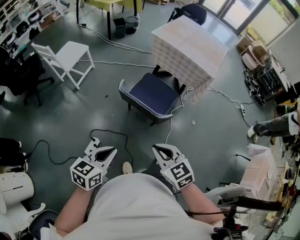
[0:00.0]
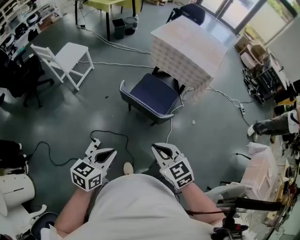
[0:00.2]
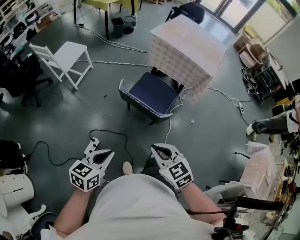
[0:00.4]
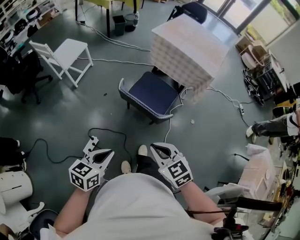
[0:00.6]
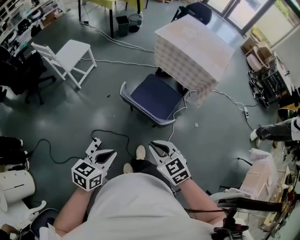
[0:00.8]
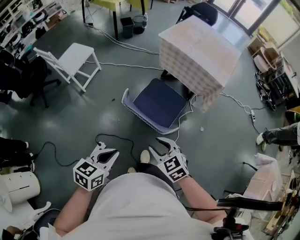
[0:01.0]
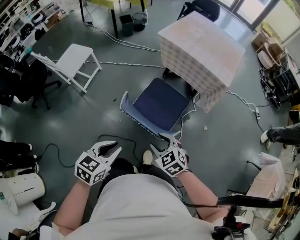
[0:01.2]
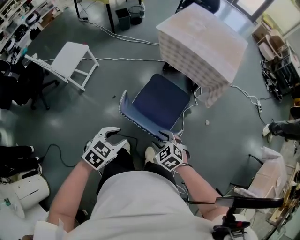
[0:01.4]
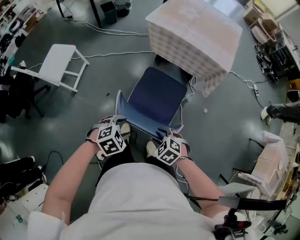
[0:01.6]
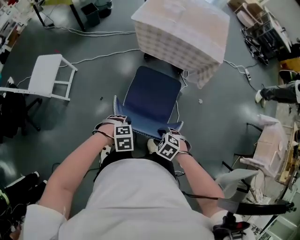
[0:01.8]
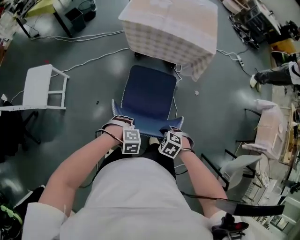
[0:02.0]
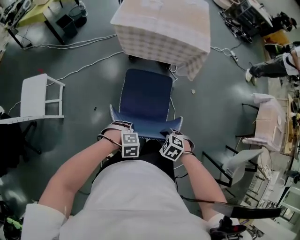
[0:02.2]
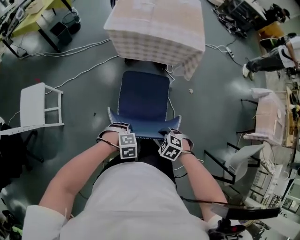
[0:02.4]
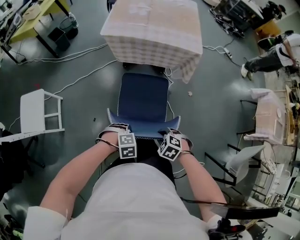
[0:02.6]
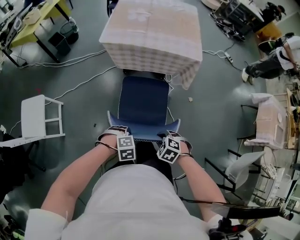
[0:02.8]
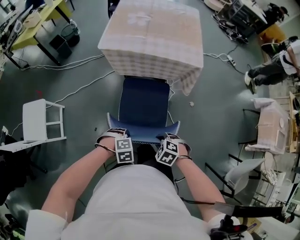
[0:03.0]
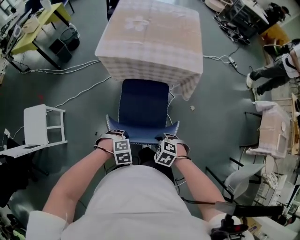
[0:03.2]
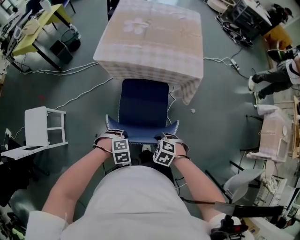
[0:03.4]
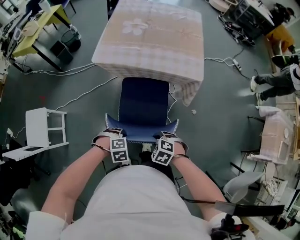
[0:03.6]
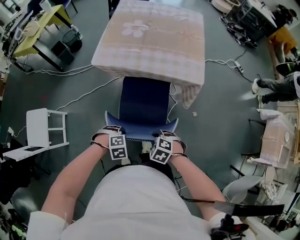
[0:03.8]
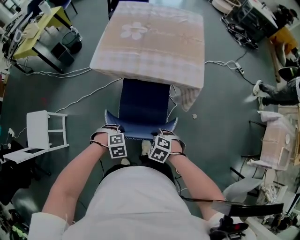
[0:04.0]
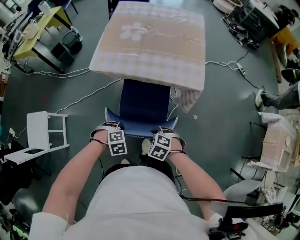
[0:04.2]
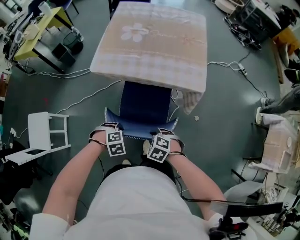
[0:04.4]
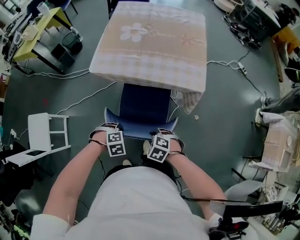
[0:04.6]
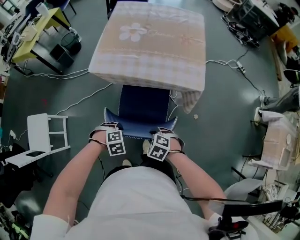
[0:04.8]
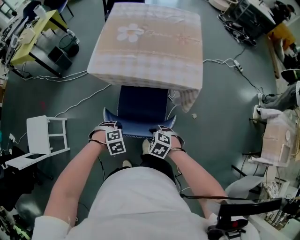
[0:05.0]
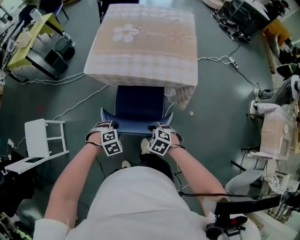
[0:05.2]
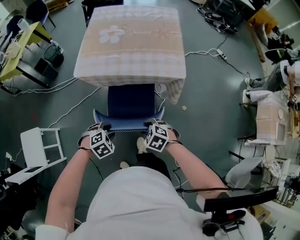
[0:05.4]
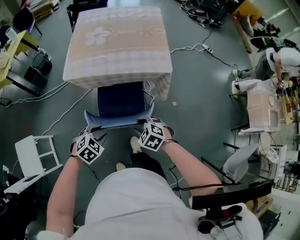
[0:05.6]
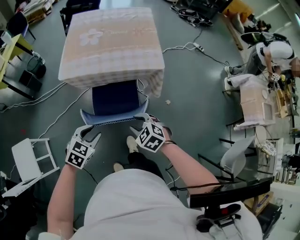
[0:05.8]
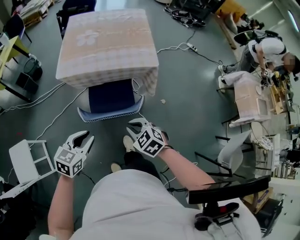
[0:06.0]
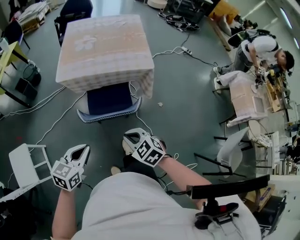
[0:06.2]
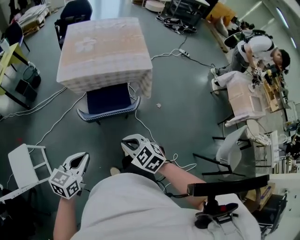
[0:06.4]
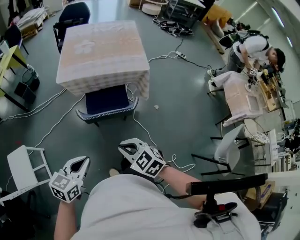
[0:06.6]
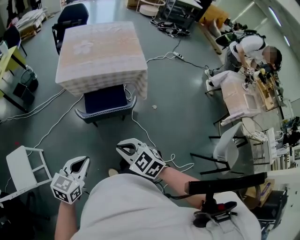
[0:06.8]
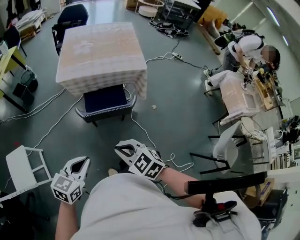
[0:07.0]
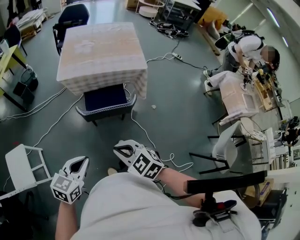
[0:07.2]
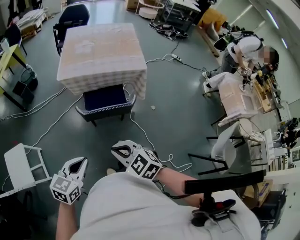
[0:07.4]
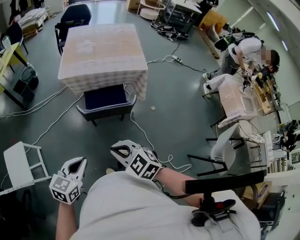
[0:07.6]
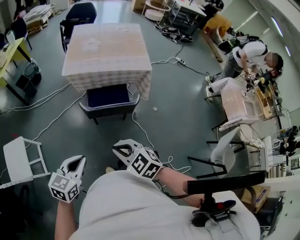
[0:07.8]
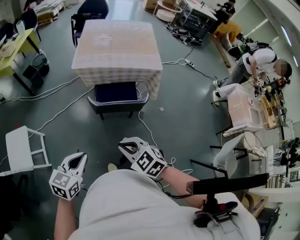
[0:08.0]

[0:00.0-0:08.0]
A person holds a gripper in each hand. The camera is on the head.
0:00.0 to 0:01.6: The grippers both shift forward and downward by about 30 cm. The right gripper angles its fingers downward, by approximately 30 degrees, and opens its fingers. The left gripper tips its fingers downward by some 40 degrees, and opens its fingers.
0:01.6 to 0:03.2: The left gripper moves approximately 20 cm, swivels some 40 degrees, and closes; the right gripper shifts by about 15 cm, and closes its fingers.
0:03.2 to 0:04.8: The right gripper ends up approximately 15 cm from where it was, while the left gripper changes place by approximately 15 cm.
0:04.8 to 0:06.4: The two grippers go about 20 cm upward. The right gripper rotates roughly 40 degrees. The left gripper tips its fingers upward by roughly 50 degrees.
0:06.4 to 0:08.0: Both grippers move backward and to the left, roughly 10 cm.

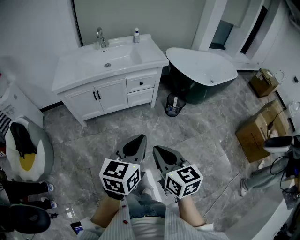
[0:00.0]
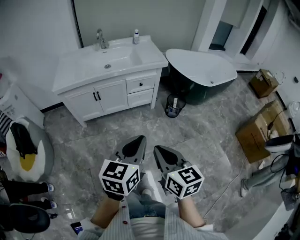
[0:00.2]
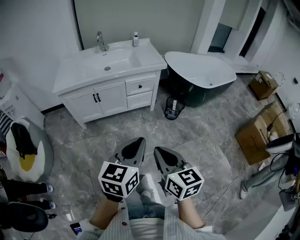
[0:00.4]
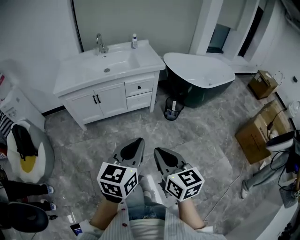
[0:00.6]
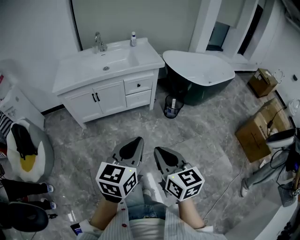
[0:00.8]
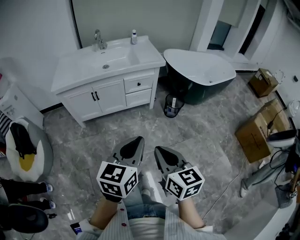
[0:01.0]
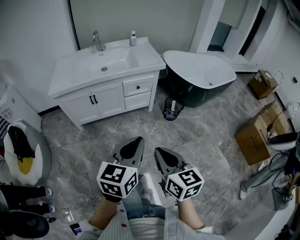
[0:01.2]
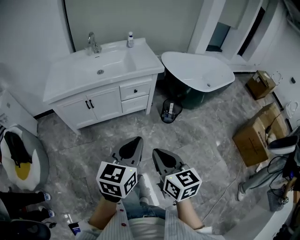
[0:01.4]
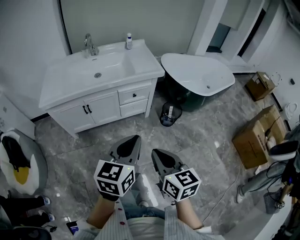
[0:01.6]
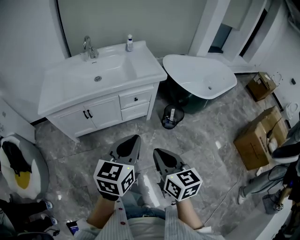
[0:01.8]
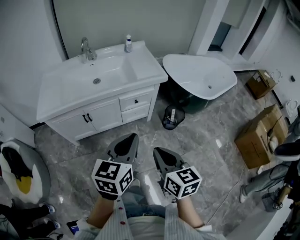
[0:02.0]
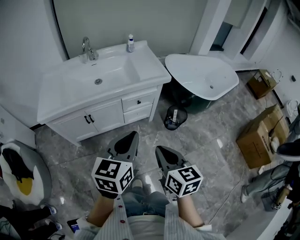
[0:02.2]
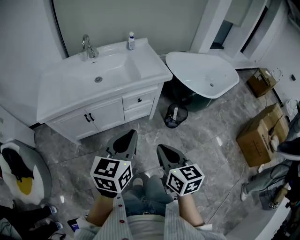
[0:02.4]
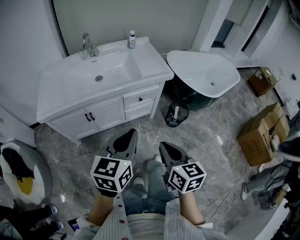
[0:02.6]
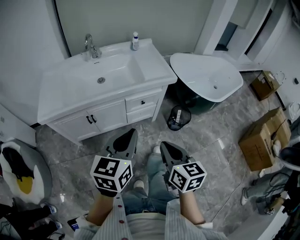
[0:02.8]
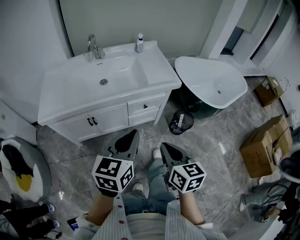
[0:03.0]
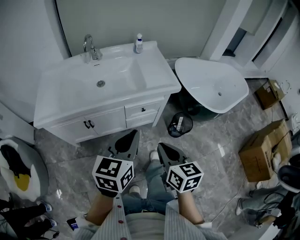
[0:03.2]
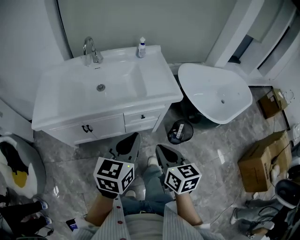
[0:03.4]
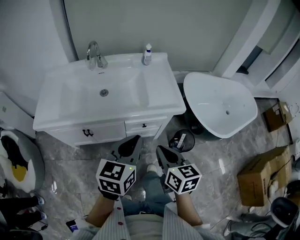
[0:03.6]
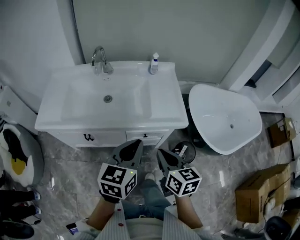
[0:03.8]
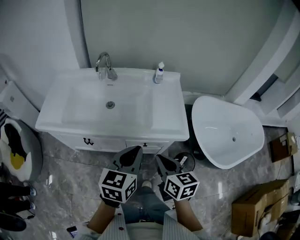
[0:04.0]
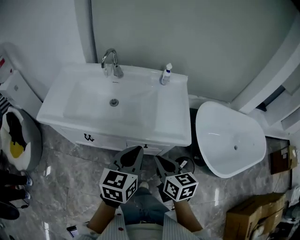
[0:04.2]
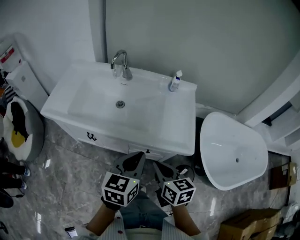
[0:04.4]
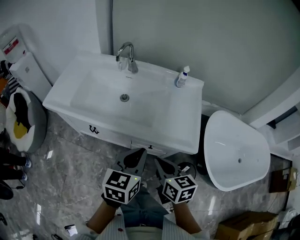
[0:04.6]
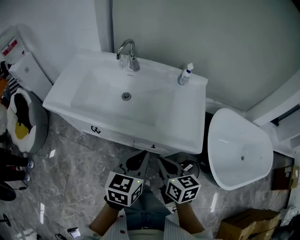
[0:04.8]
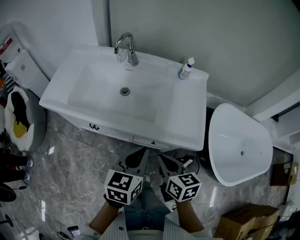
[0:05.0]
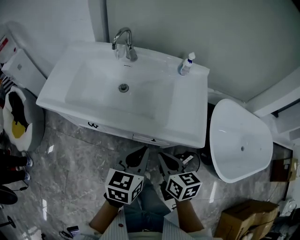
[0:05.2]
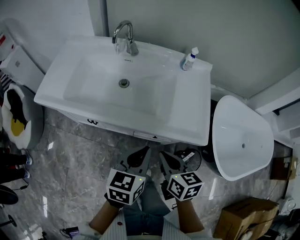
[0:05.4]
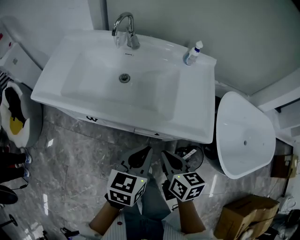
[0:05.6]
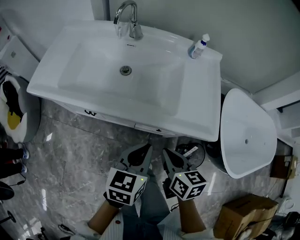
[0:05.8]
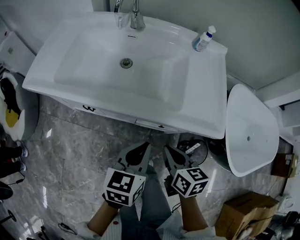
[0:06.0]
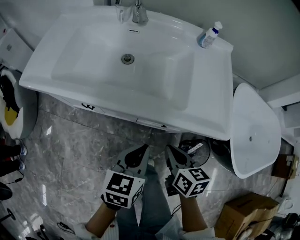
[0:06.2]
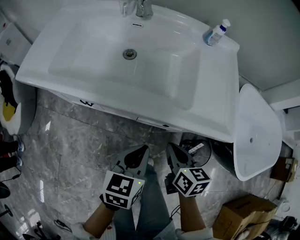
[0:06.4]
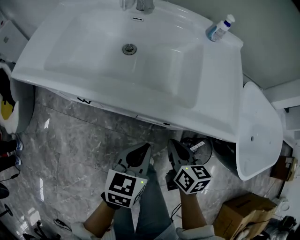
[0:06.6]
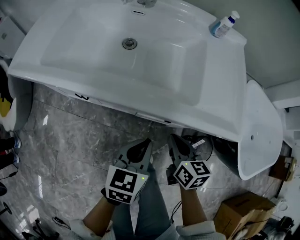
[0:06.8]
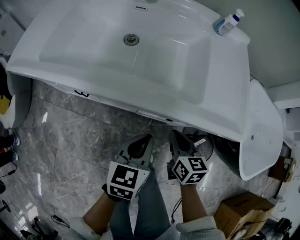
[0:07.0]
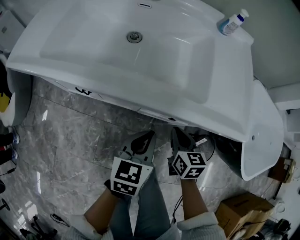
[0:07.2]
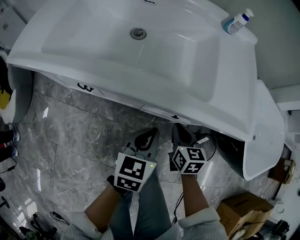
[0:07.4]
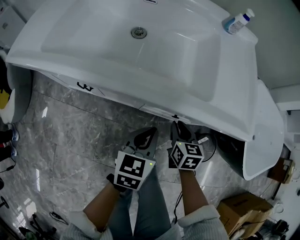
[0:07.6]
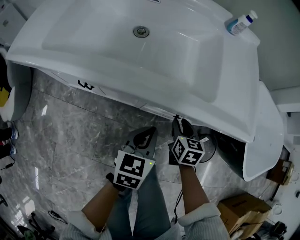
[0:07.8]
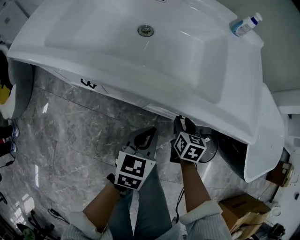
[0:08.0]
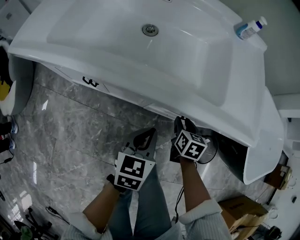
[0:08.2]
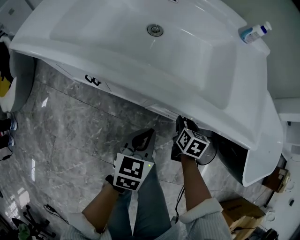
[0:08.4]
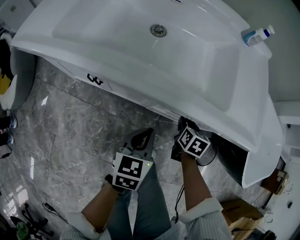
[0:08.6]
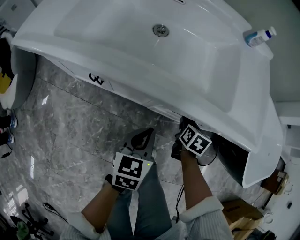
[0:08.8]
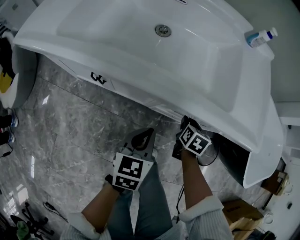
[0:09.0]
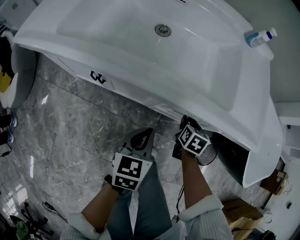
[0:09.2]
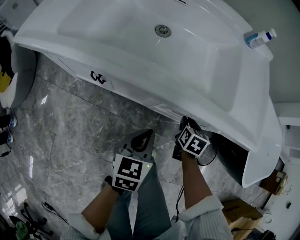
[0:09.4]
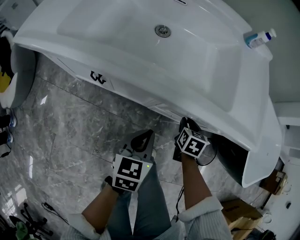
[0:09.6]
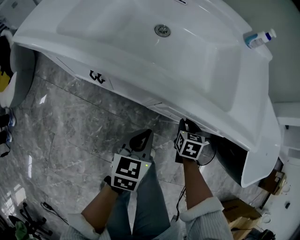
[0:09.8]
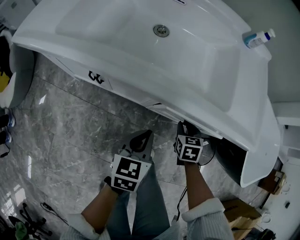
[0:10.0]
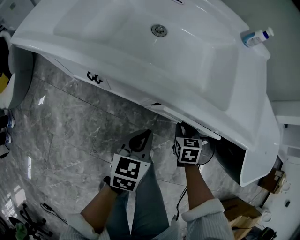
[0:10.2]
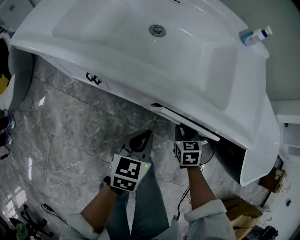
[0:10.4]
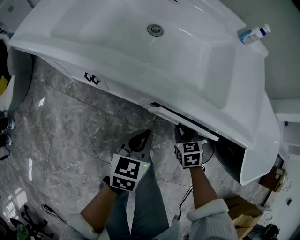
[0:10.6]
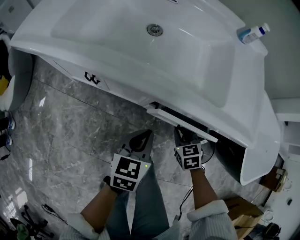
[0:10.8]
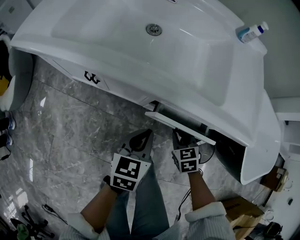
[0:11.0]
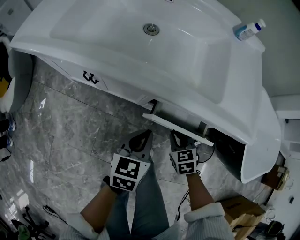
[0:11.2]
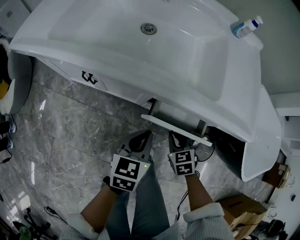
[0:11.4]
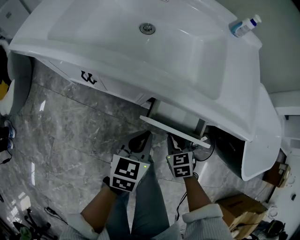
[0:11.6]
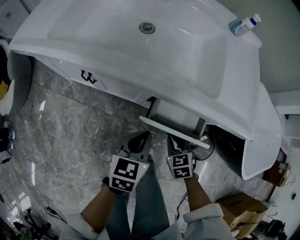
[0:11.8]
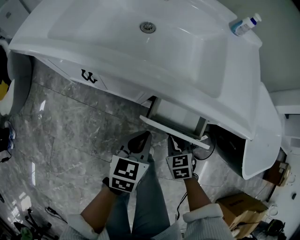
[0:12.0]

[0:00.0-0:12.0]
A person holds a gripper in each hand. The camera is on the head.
0:00.0 to 0:01.6: Both grippers move forward, about 15 cm.
0:01.6 to 0:03.0: The left gripper moves forward and to the left, about 20 cm. Meanwhile the right gripper is displaced forward by some 20 cm.
0:03.0 to 0:04.4: The left gripper ends up roughly 25 cm from where it was, and swivels some 30 degrees; the right gripper moves some 25 cm, and changes its angle by approximately 30 degrees.
0:04.4 to 0:06.0: The two grippers go some 15 cm downward.
0:06.0 to 0:07.6: Both grippers move downward, approximately 15 cm.
0:07.6 to 0:09.0: The left gripper heads to the left, covering some 5 cm; the right gripper moves downward, roughly 5 cm.
0:09.0 to 0:10.4: The right gripper swivels approximately 30 degrees.
0:10.4 to 0:12.0: The right gripper is displaced backward by about 10 cm.

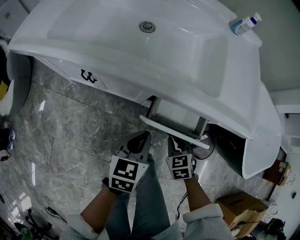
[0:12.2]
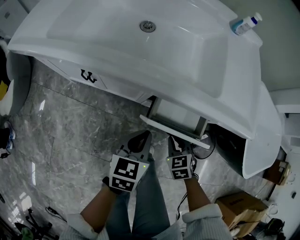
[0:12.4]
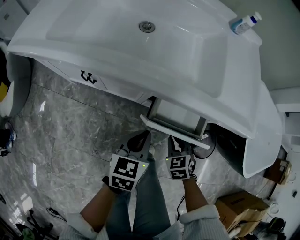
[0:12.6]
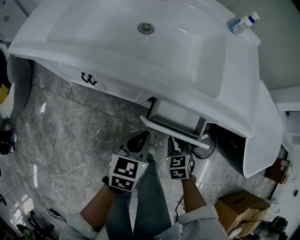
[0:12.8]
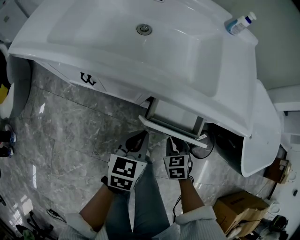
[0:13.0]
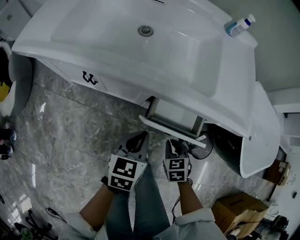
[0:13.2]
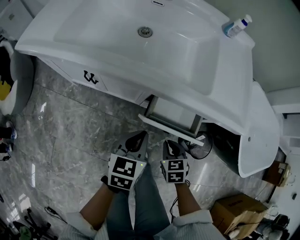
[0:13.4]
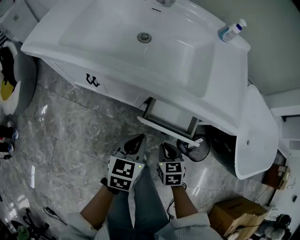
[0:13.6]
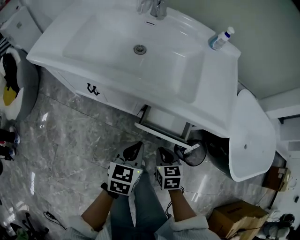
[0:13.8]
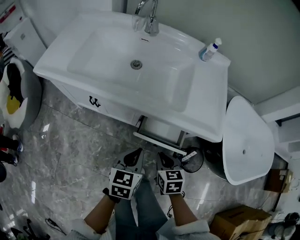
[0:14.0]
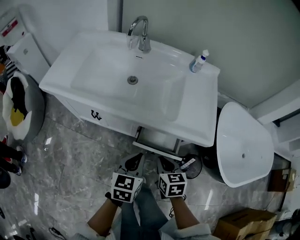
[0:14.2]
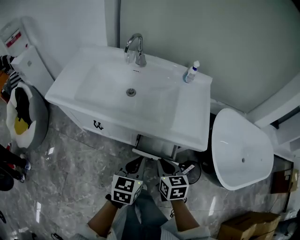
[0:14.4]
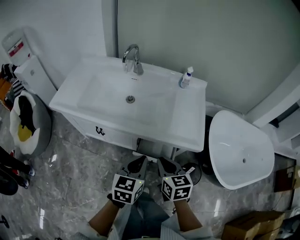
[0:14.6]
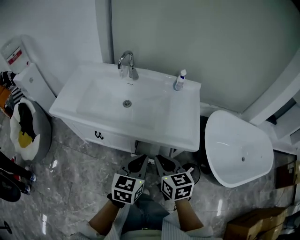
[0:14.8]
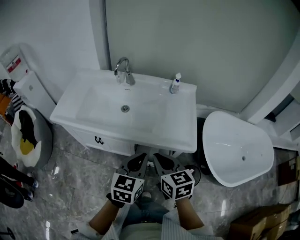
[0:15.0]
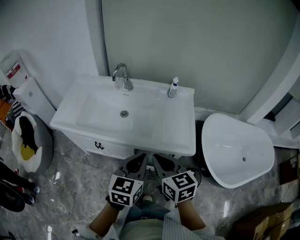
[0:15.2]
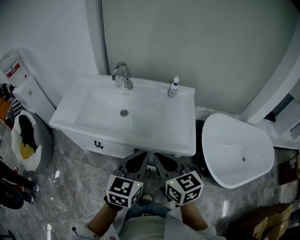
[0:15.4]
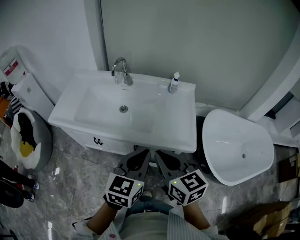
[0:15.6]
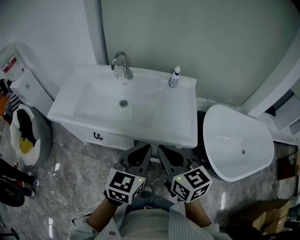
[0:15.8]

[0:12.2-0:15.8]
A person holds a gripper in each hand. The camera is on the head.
0:12.2 to 0:14.0: The grippers both shift upward by about 10 cm. The right gripper turns by roughly 20 degrees.
0:14.0 to 0:15.8: Both grippers travel together upward, approximately 30 cm. The left gripper turns by some 20 degrees. The right gripper tips its fingers upward by approximately 30 degrees.
